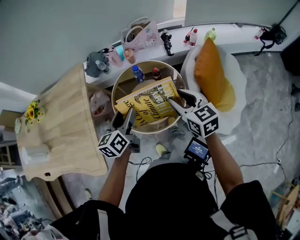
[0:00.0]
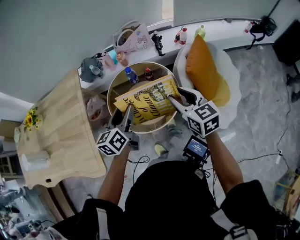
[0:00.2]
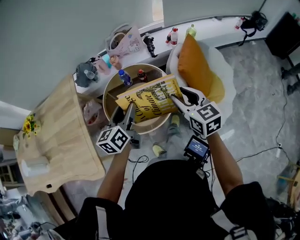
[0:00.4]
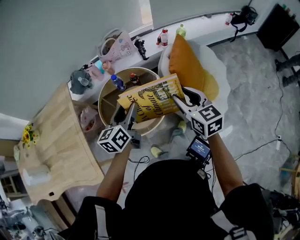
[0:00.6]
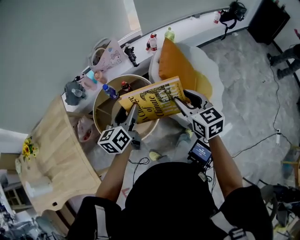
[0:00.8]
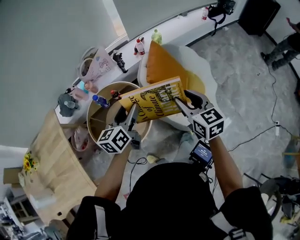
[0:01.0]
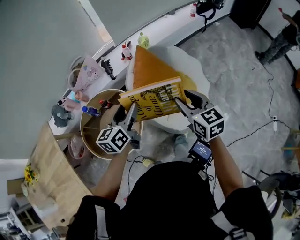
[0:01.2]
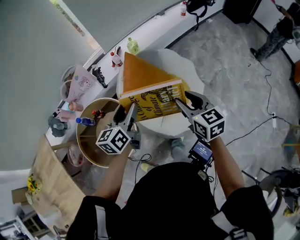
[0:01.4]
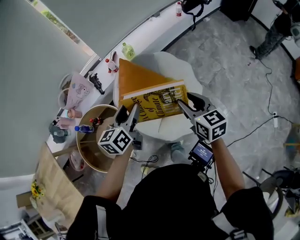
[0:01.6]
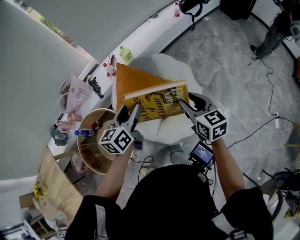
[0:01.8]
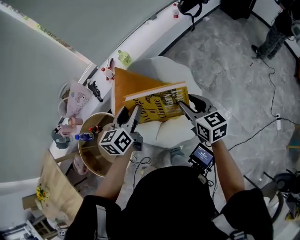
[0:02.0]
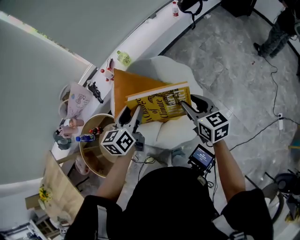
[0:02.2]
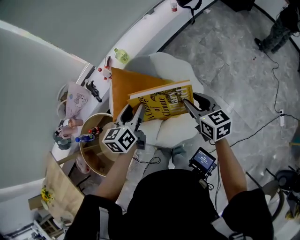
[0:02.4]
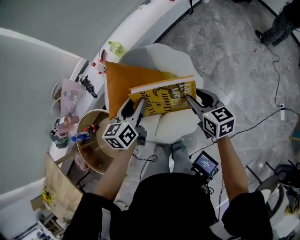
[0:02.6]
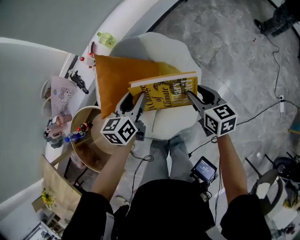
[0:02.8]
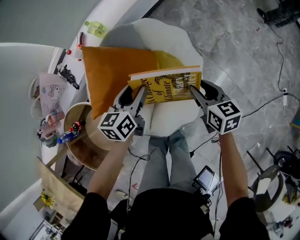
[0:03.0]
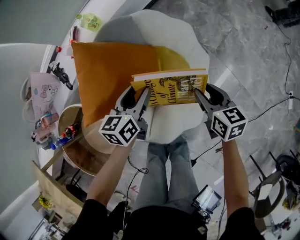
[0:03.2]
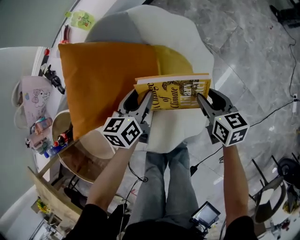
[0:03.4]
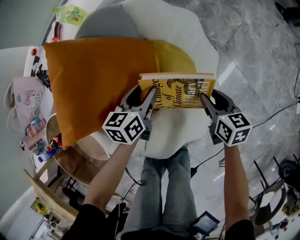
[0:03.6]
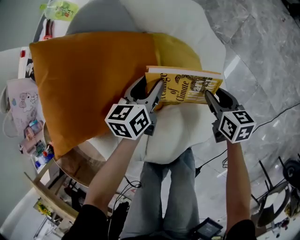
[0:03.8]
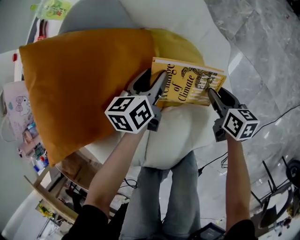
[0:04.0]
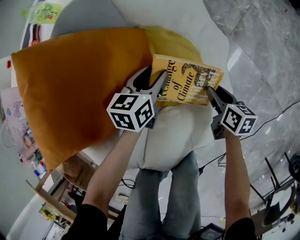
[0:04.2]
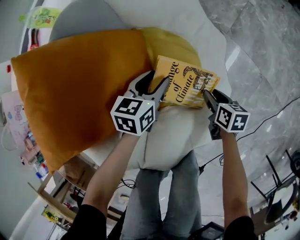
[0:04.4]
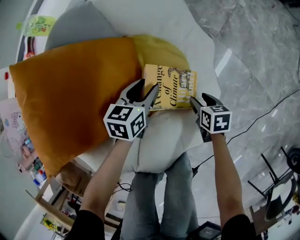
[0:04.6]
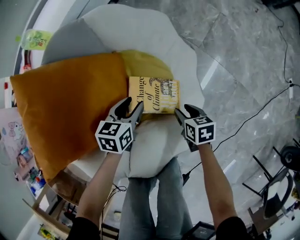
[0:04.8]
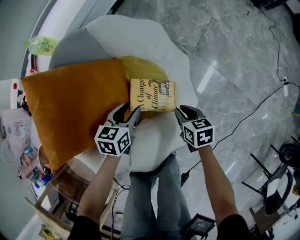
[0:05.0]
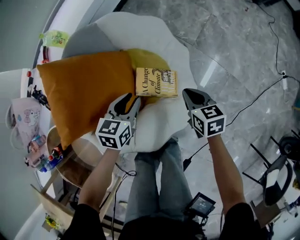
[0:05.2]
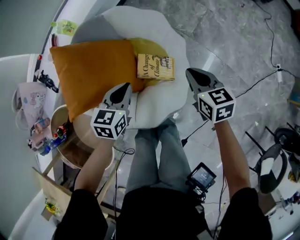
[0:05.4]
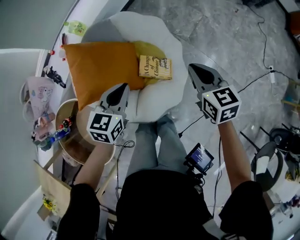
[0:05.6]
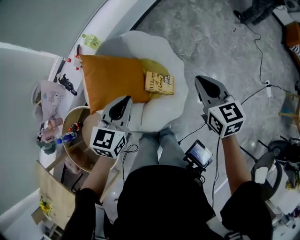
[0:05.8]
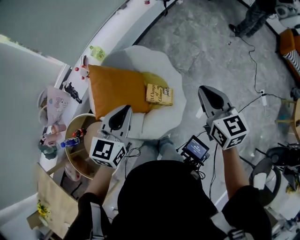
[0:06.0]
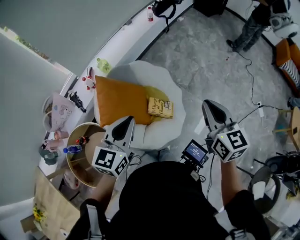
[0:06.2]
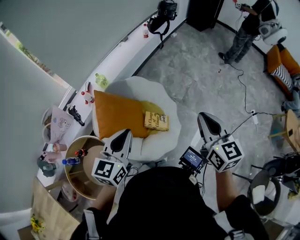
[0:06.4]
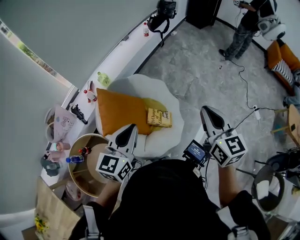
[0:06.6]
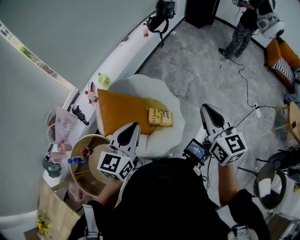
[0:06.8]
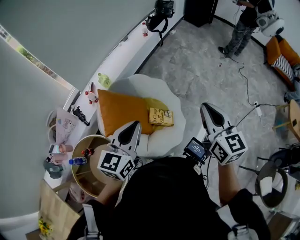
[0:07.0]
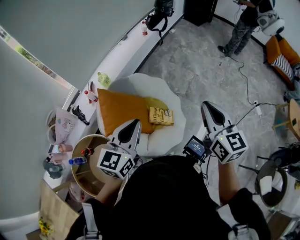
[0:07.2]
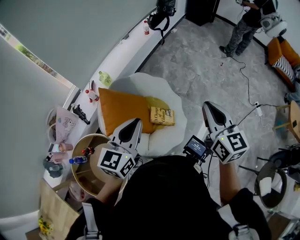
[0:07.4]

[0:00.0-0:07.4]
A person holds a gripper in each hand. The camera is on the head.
0:00.0 to 0:01.4: The two grippers travel together, approximately 40 cm. The left gripper swivels about 30 degrees, while the right gripper rotates approximately 30 degrees.
0:01.4 to 0:03.0: Both grippers move downward, to the right and forward, approximately 35 cm. The left gripper turns by roughly 20 degrees, while the right gripper turns by some 20 degrees.
0:03.0 to 0:04.4: Both grippers move downward, some 40 cm. The right gripper turns by some 30 degrees. The left gripper rotates about 20 degrees.
0:04.4 to 0:06.0: Both grippers move upward, roughly 60 cm. The left gripper rotates some 30 degrees, and closes up; the right gripper tilts its fingers approximately 30 degrees upward, and closes up.
0:06.0 to 0:07.4: The left gripper heads upward, covering roughly 10 cm. Meanwhile the right gripper travels upward and backward by approximately 10 cm.

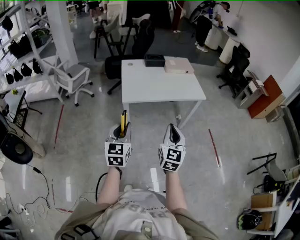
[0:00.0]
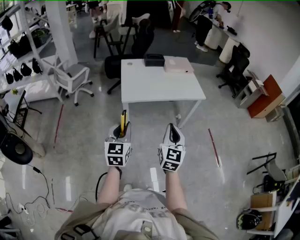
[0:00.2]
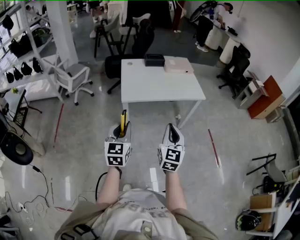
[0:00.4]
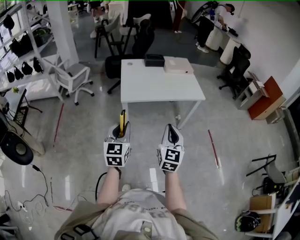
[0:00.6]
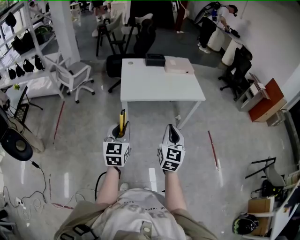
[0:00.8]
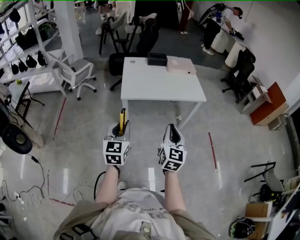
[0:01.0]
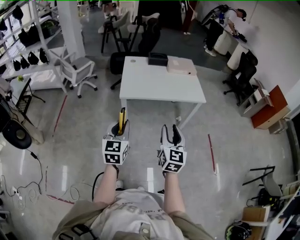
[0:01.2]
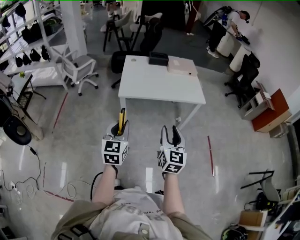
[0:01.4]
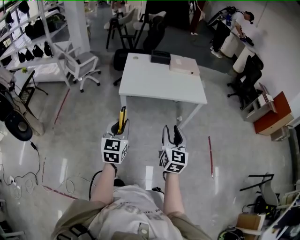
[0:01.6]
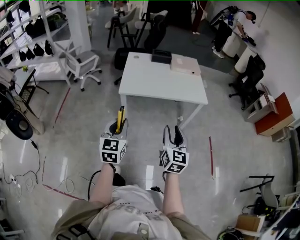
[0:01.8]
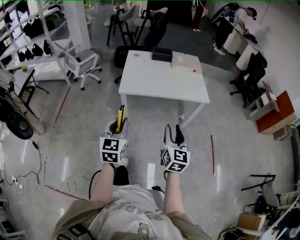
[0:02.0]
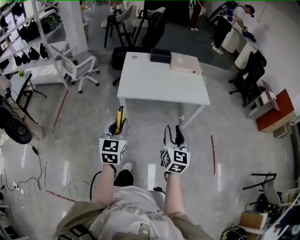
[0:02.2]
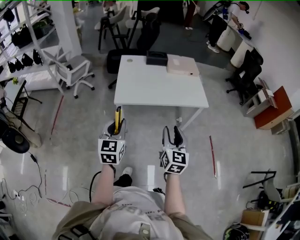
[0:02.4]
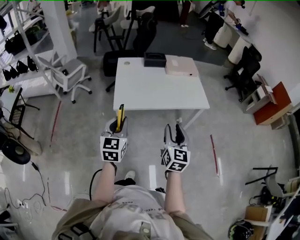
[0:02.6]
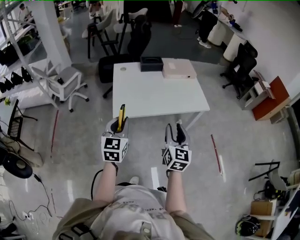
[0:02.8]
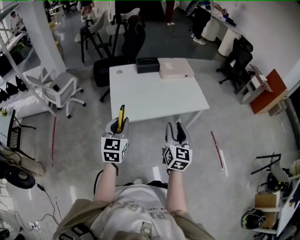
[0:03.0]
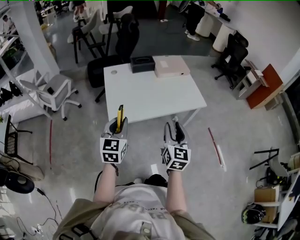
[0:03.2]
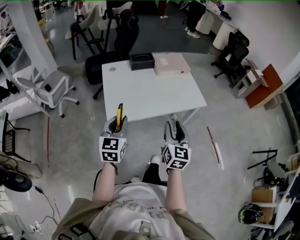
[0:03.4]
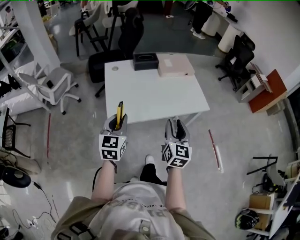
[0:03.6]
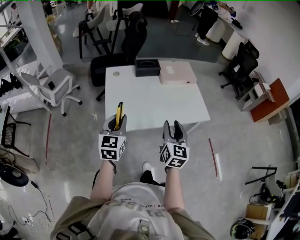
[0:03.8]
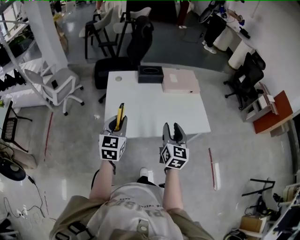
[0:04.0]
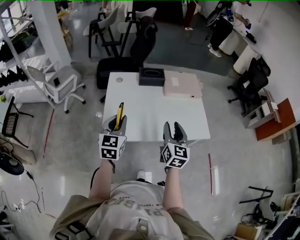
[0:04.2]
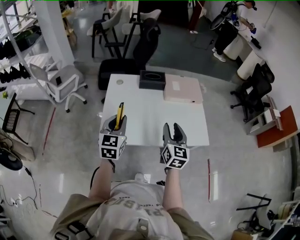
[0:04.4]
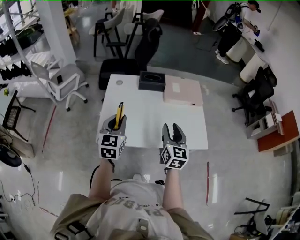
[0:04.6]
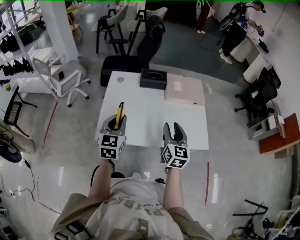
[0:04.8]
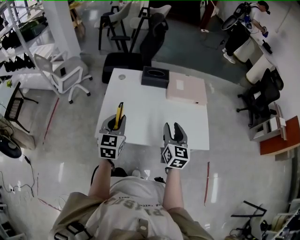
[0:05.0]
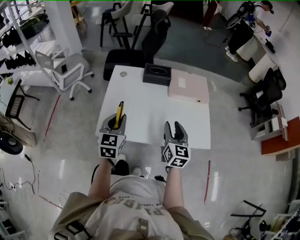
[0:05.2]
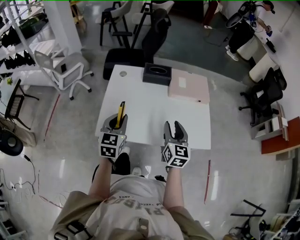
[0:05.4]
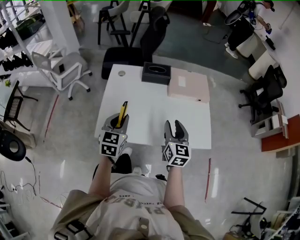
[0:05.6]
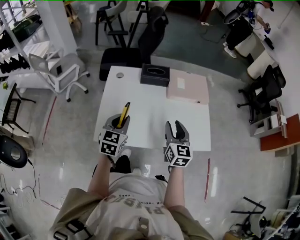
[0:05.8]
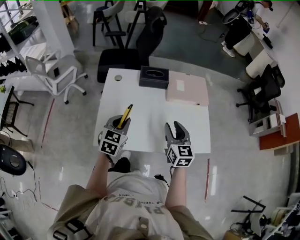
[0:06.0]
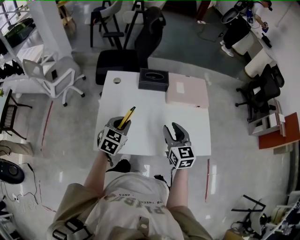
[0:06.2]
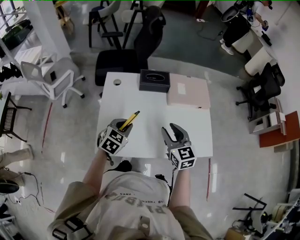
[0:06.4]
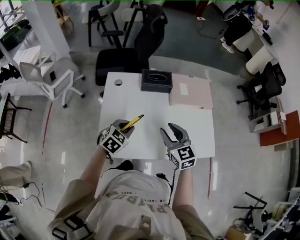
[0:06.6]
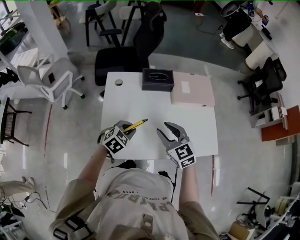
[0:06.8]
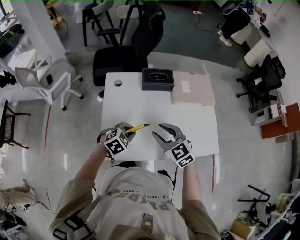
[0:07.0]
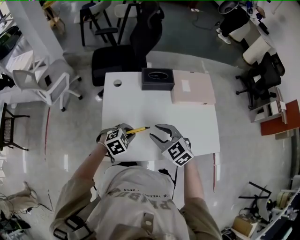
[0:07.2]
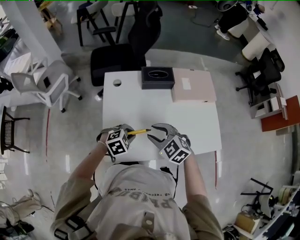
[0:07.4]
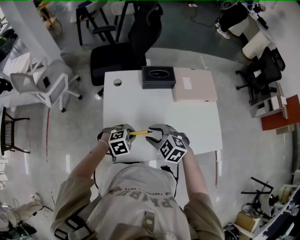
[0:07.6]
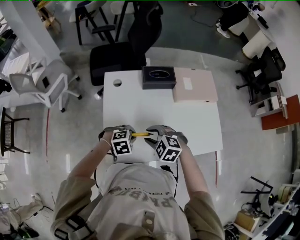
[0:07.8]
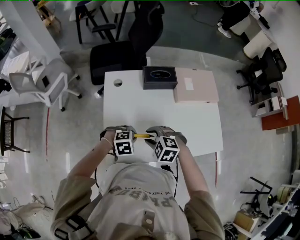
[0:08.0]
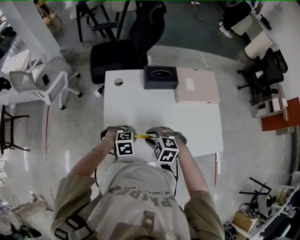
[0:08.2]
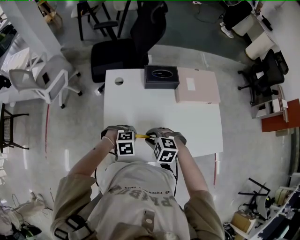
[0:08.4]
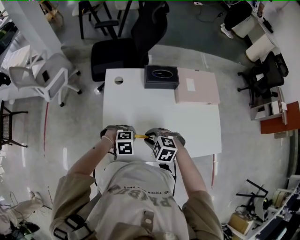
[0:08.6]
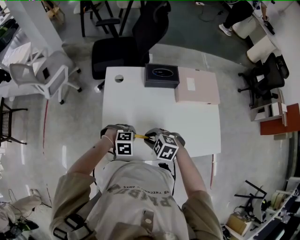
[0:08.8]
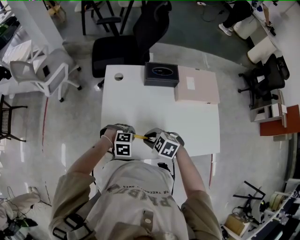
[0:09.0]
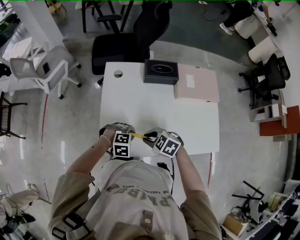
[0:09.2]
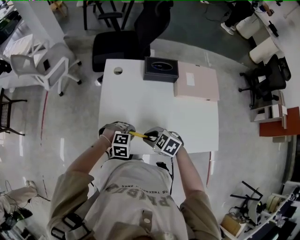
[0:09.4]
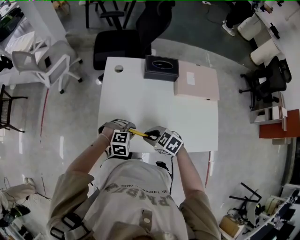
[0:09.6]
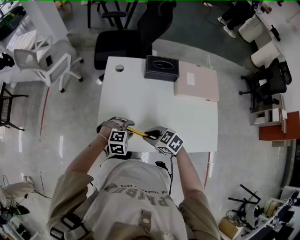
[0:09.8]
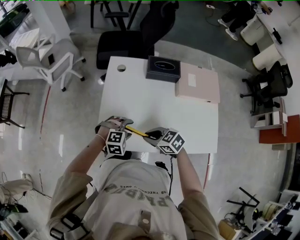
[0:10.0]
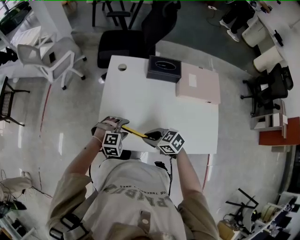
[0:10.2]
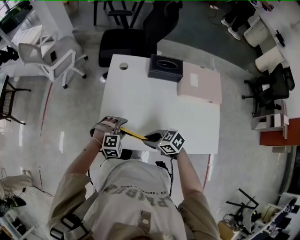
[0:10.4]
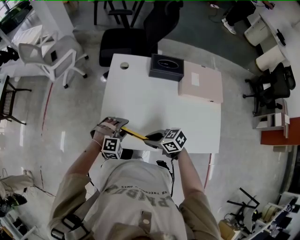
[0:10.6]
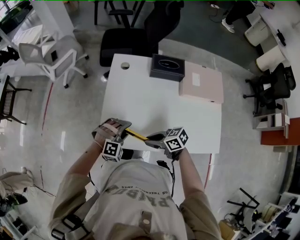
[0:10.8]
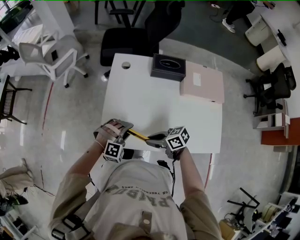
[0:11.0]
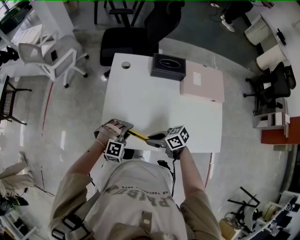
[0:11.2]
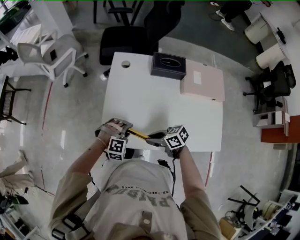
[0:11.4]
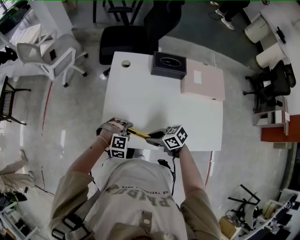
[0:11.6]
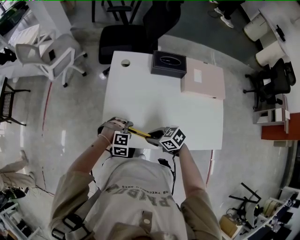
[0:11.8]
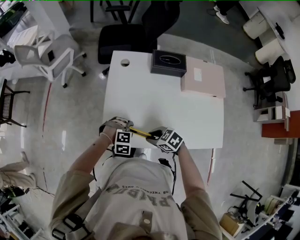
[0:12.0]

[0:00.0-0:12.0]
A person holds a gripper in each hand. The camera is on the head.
0:00.0 to 0:01.6: Both grippers move to the right, about 10 cm. The right gripper opens up.
0:01.6 to 0:03.0: The grippers both shift forward by some 25 cm.
0:03.0 to 0:04.4: The grippers both shift forward by about 25 cm.
0:04.4 to 0:06.0: The right gripper travels forward by approximately 10 cm. The left gripper heads downward and forward, covering roughly 10 cm.
0:06.0 to 0:07.6: The right gripper heads to the left and downward, covering roughly 20 cm, and tilts its fingers roughly 30 degrees downward; the left gripper moves downward, approximately 10 cm, and tilts its fingers approximately 30 degrees downward.
0:07.6 to 0:09.0: The left gripper shifts by about 5 cm. The right gripper goes approximately 5 cm downward, and closes its fingers.
0:09.0 to 0:10.4: The left gripper swivels roughly 20 degrees, and opens up, while the right gripper shifts by about 5 cm, and turns by approximately 30 degrees.
0:10.4 to 0:12.0: The left gripper shifts by some 5 cm, and closes up.

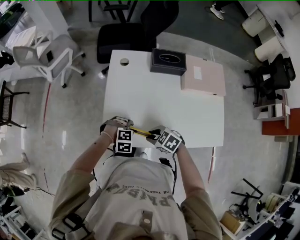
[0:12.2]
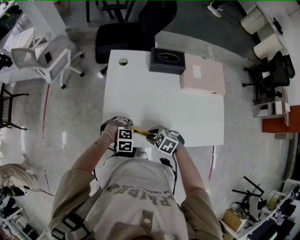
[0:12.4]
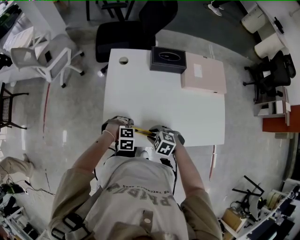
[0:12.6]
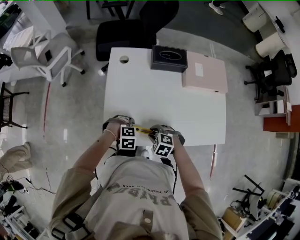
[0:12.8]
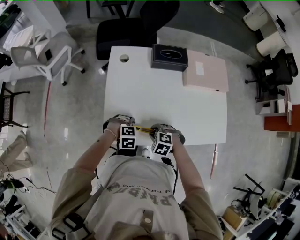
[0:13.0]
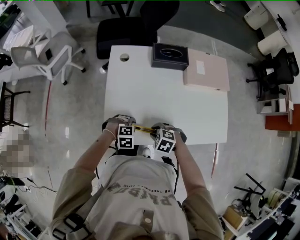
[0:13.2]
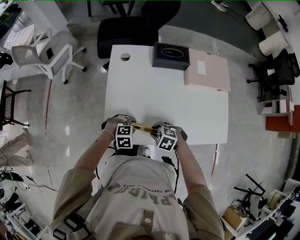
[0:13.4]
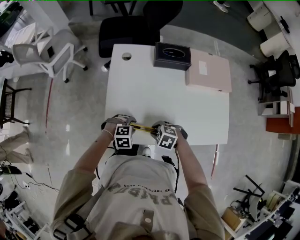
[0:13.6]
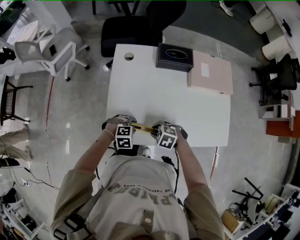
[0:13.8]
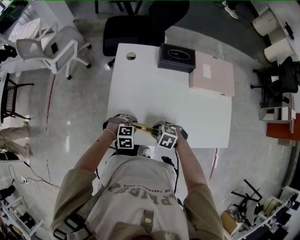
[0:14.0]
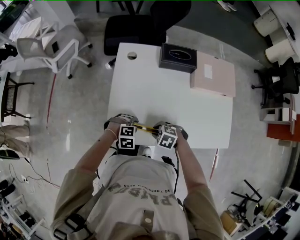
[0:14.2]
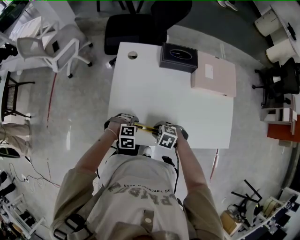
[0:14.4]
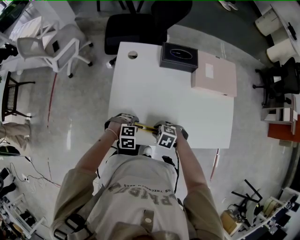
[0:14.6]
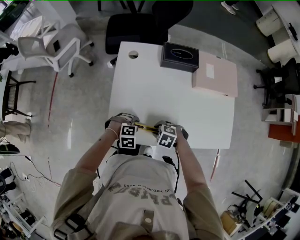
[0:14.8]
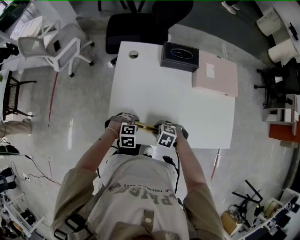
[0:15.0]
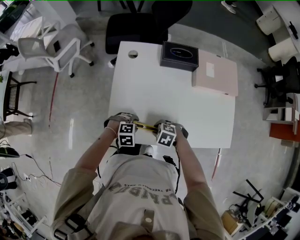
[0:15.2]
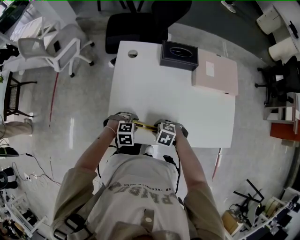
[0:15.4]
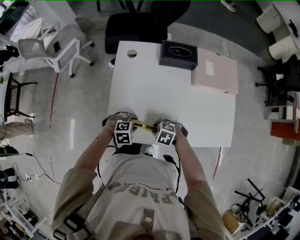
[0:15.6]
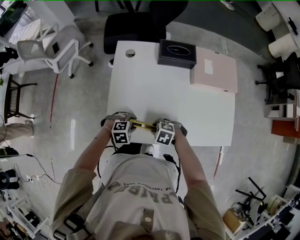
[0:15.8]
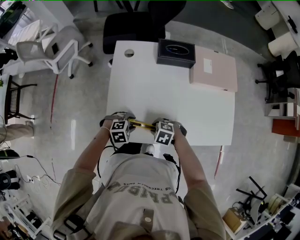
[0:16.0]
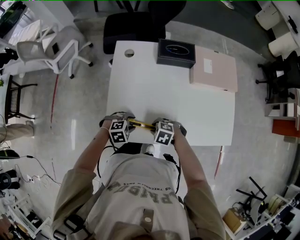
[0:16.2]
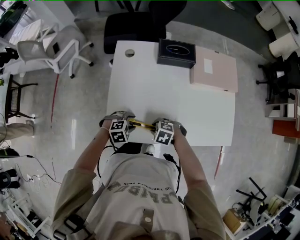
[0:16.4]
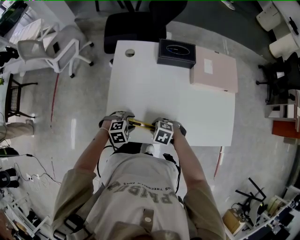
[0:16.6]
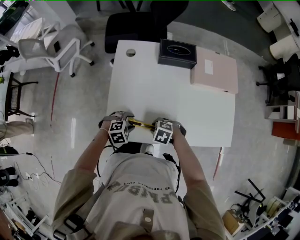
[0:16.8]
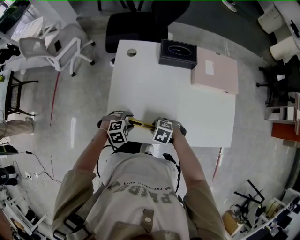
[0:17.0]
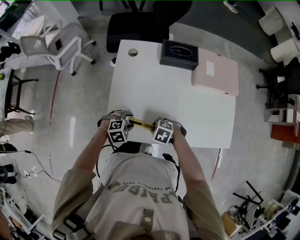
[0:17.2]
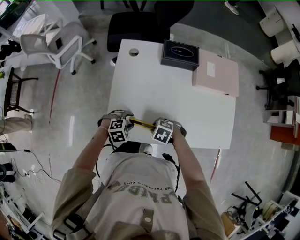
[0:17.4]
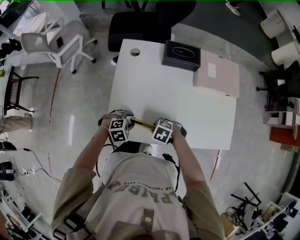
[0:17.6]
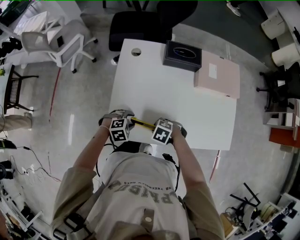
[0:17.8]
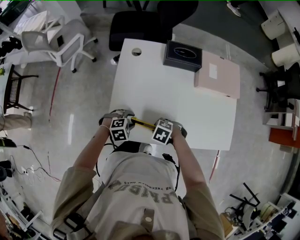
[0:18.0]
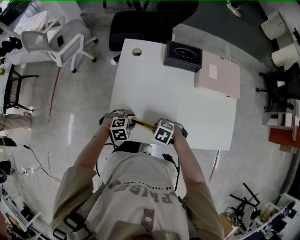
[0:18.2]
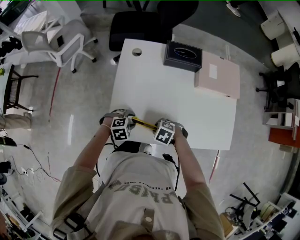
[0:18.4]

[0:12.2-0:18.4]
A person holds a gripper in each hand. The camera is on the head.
0:13.8 to 0:18.4: The grippers move only a little.
